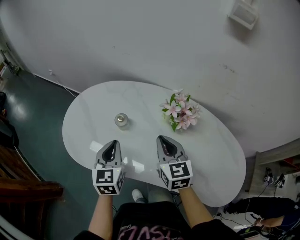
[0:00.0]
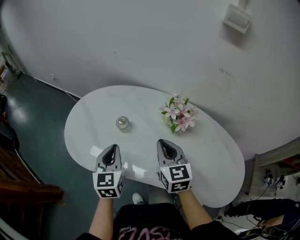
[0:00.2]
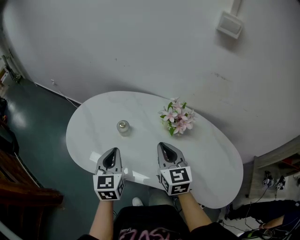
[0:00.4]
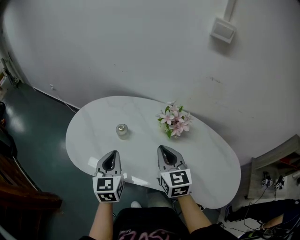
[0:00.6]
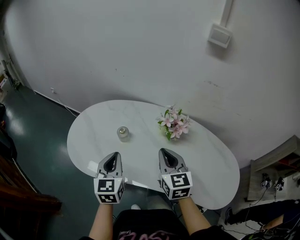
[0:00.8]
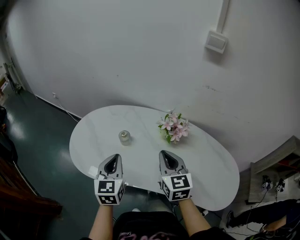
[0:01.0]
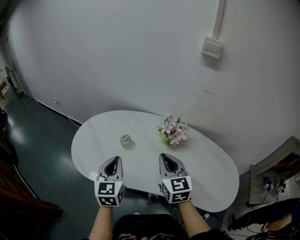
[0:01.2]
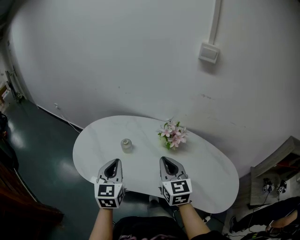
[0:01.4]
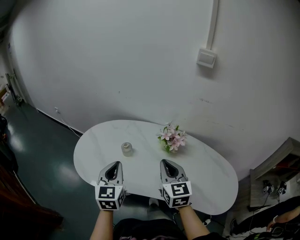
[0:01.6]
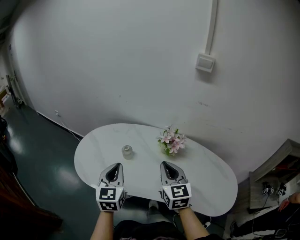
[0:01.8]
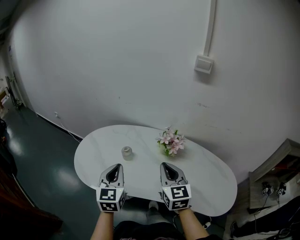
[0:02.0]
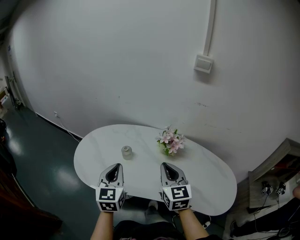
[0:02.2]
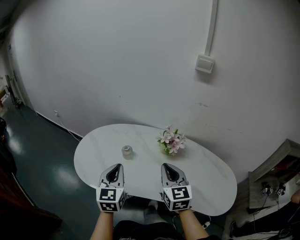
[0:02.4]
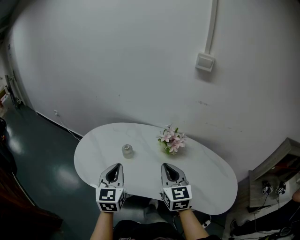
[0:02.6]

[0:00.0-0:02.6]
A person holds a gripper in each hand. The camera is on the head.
0:00.0 to 0:01.2: Both grippers move upward and backward, some 10 cm.
0:01.2 to 0:02.6: The grippers stay close to where they were, moving slightly.

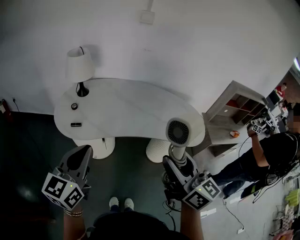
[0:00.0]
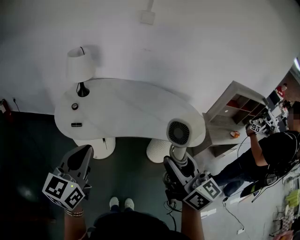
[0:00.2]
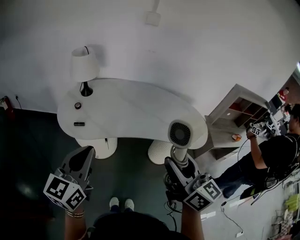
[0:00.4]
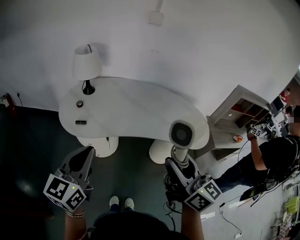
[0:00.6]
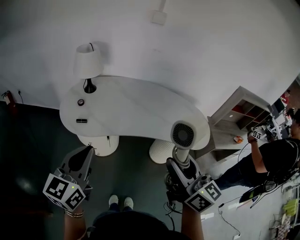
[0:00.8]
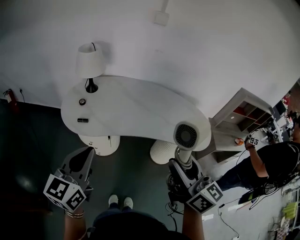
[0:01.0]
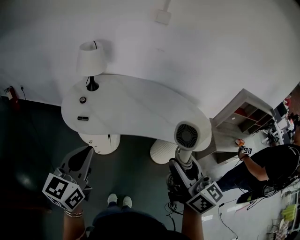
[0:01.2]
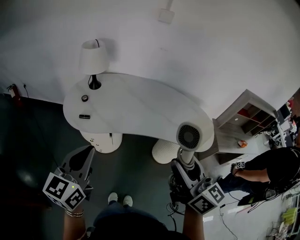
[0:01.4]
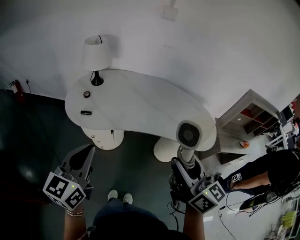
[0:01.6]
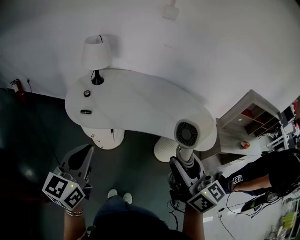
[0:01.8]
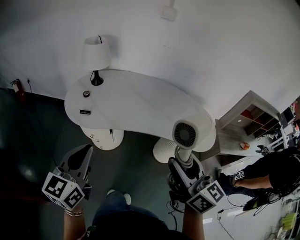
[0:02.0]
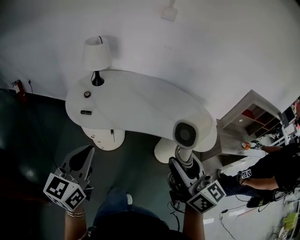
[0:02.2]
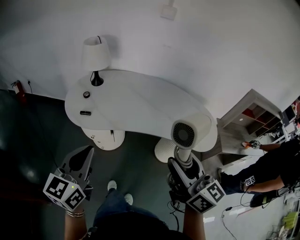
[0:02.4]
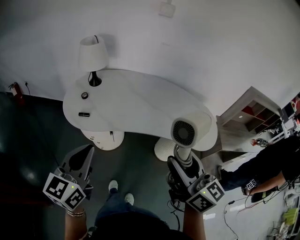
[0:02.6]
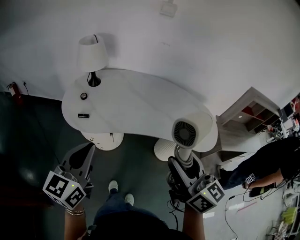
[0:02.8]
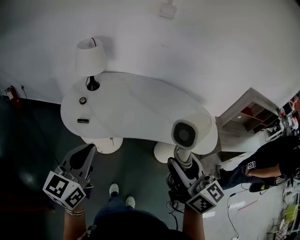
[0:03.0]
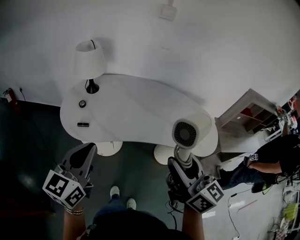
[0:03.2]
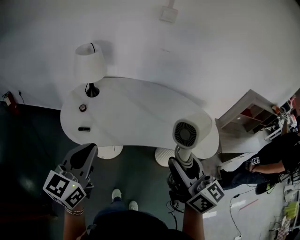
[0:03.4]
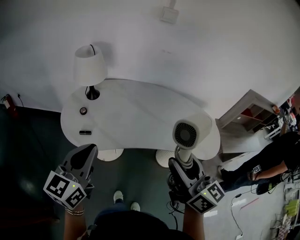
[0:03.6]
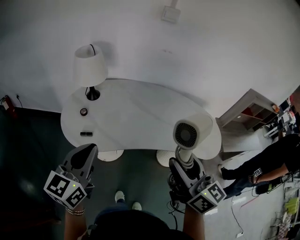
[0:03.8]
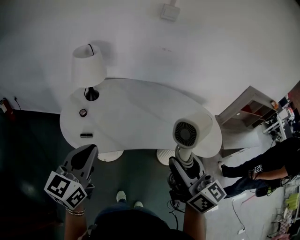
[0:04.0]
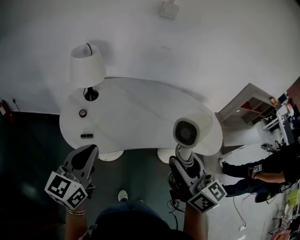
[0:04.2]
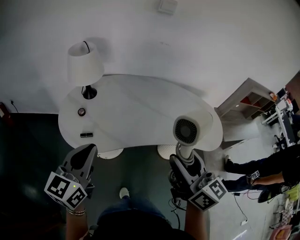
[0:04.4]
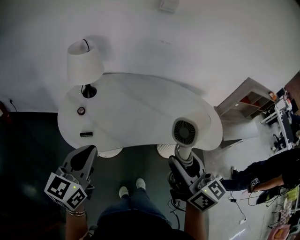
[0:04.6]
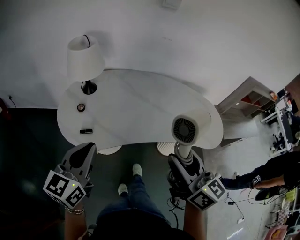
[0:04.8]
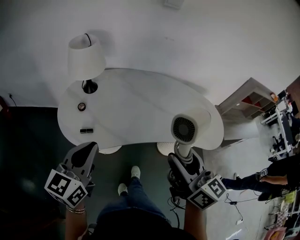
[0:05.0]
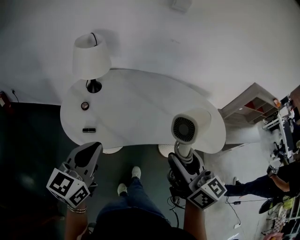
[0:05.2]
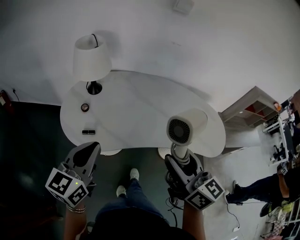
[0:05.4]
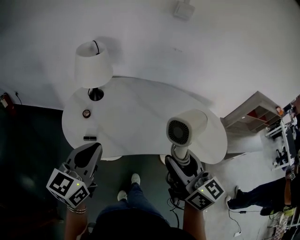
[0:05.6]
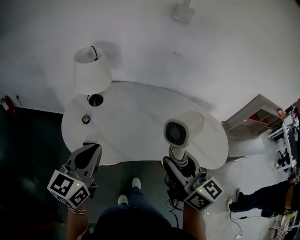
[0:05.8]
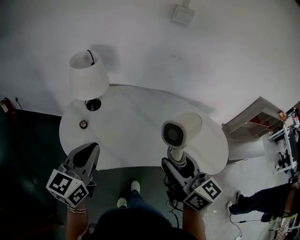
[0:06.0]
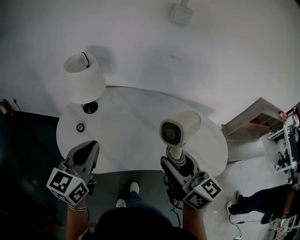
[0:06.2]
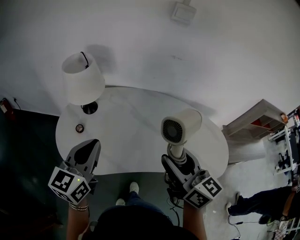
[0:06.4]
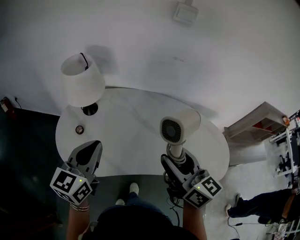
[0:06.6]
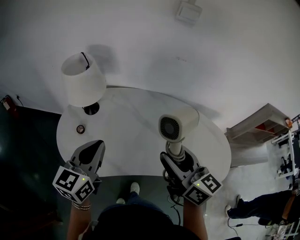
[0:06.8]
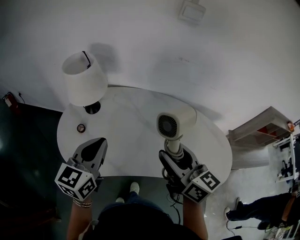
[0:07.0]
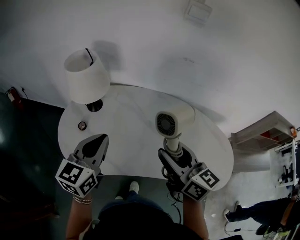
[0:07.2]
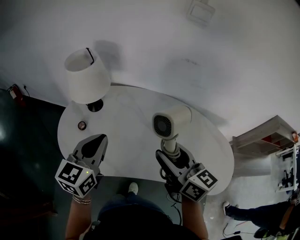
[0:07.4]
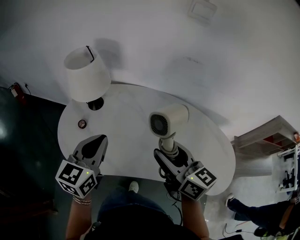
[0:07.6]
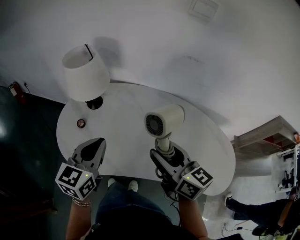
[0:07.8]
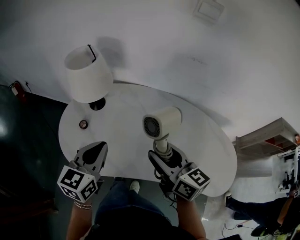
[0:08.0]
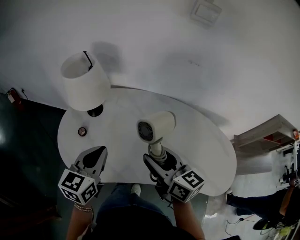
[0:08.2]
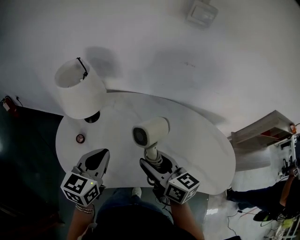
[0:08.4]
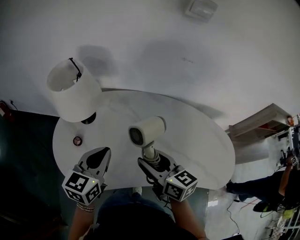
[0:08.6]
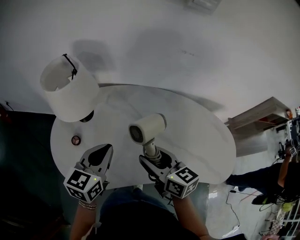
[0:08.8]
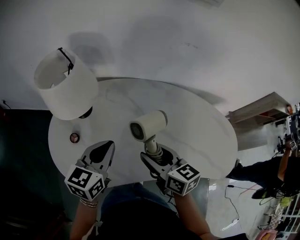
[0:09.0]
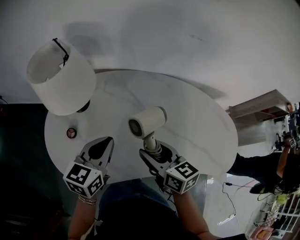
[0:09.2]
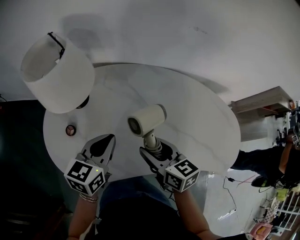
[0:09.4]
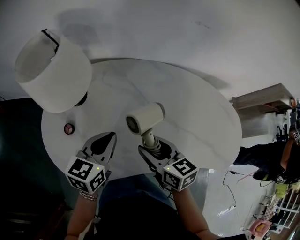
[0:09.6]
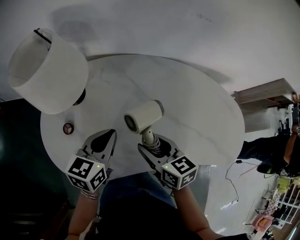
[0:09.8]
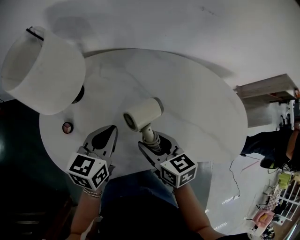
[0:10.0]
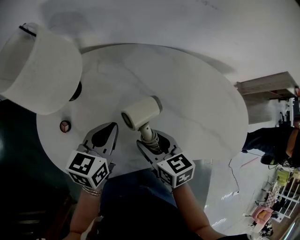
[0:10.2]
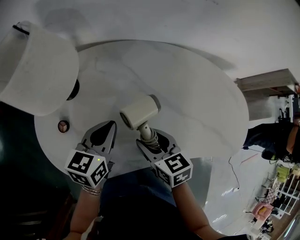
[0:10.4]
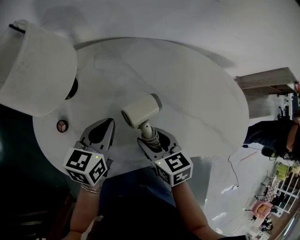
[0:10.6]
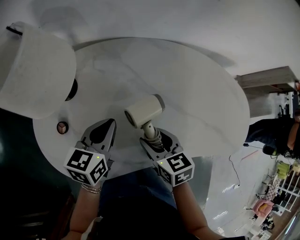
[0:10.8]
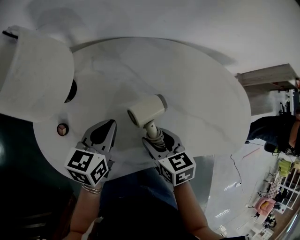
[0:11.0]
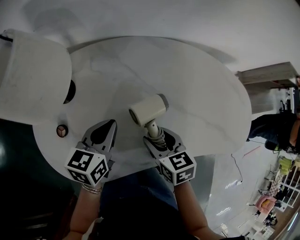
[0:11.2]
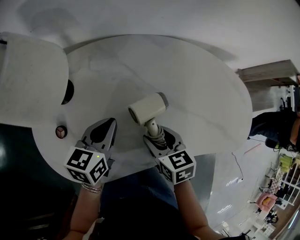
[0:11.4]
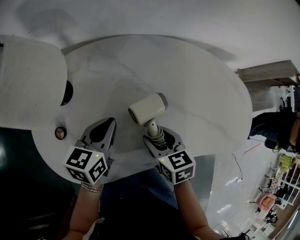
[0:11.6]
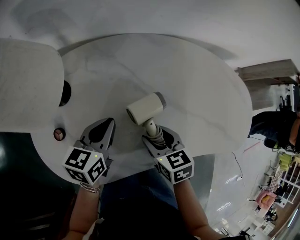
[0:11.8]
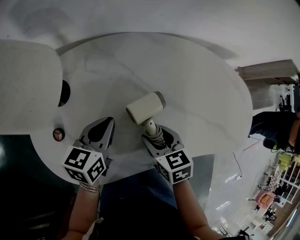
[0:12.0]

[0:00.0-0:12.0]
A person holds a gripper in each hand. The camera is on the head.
0:00.0 to 0:01.6: The grippers move only a little.
0:01.6 to 0:03.0: The grippers both shift forward by about 5 cm.
0:03.0 to 0:04.4: The left gripper moves forward and to the left, roughly 10 cm. The right gripper travels to the left and forward by roughly 10 cm.
0:04.4 to 0:06.0: The two grippers go about 10 cm forward.
0:06.0 to 0:07.6: The left gripper is displaced forward and to the right by roughly 10 cm; the right gripper shifts about 15 cm forward.
0:07.6 to 0:09.0: The left gripper shifts approximately 10 cm downward and forward, while the right gripper shifts about 15 cm downward, to the left and forward.
0:09.0 to 0:10.4: The two grippers go roughly 10 cm downward.
0:10.4 to 0:12.0: The grippers make only small movements.

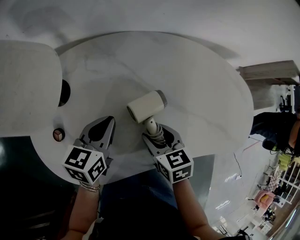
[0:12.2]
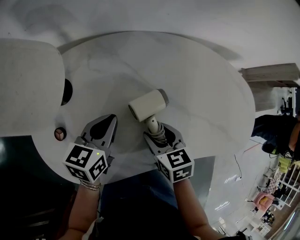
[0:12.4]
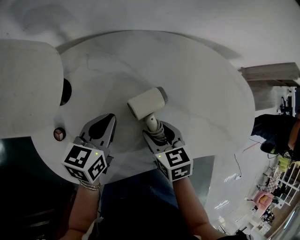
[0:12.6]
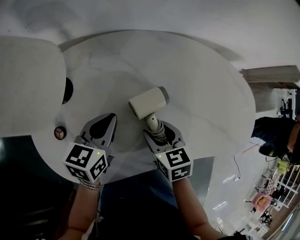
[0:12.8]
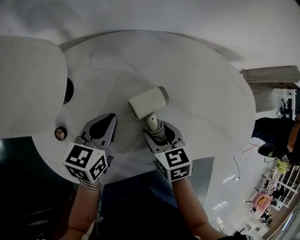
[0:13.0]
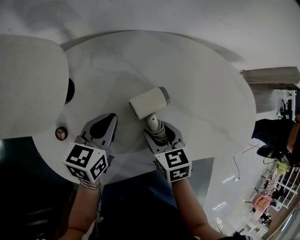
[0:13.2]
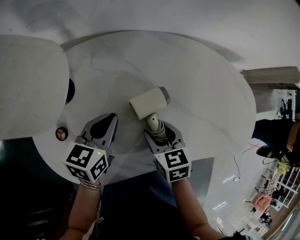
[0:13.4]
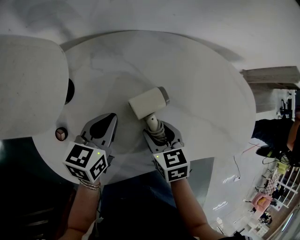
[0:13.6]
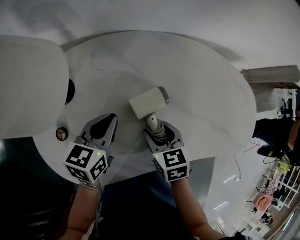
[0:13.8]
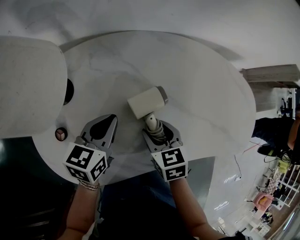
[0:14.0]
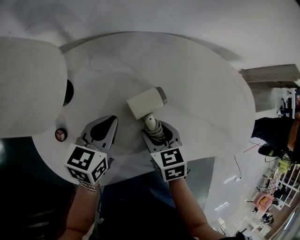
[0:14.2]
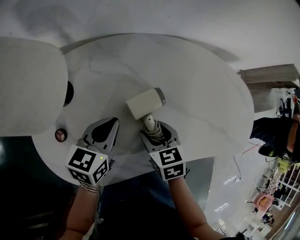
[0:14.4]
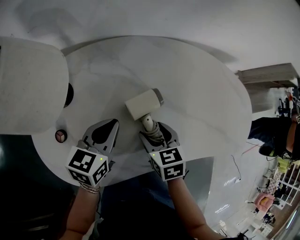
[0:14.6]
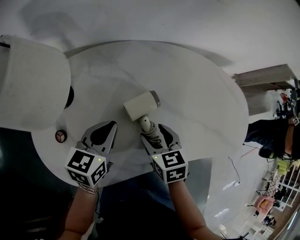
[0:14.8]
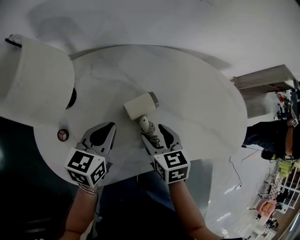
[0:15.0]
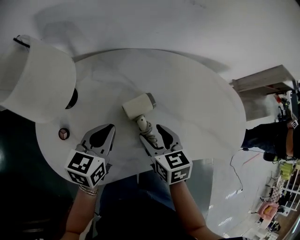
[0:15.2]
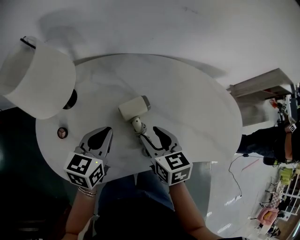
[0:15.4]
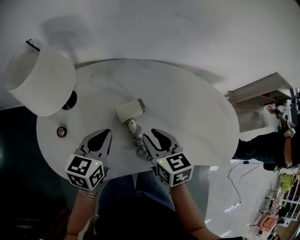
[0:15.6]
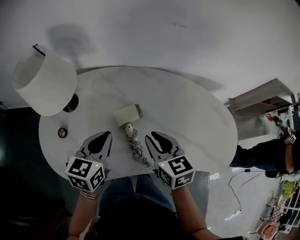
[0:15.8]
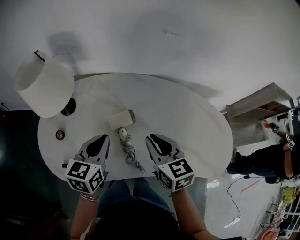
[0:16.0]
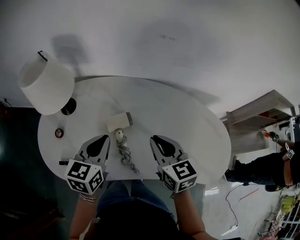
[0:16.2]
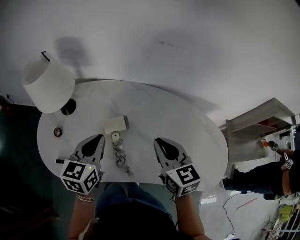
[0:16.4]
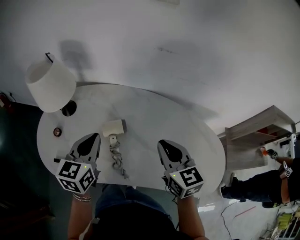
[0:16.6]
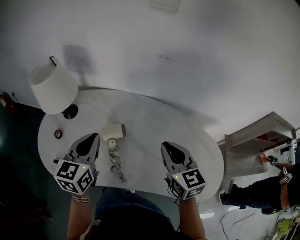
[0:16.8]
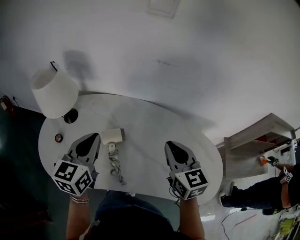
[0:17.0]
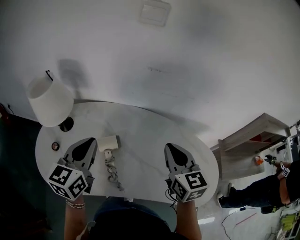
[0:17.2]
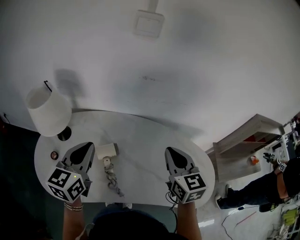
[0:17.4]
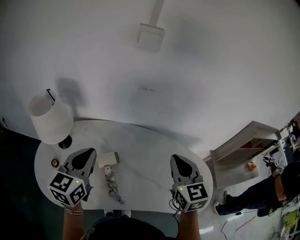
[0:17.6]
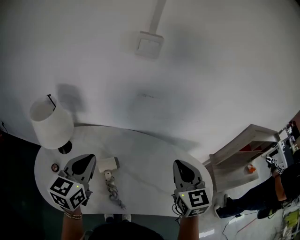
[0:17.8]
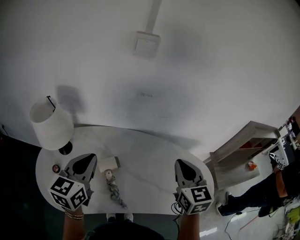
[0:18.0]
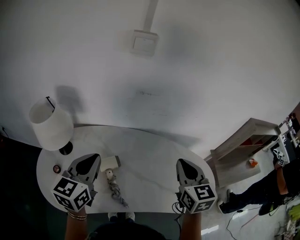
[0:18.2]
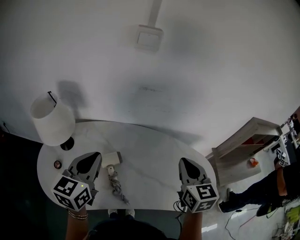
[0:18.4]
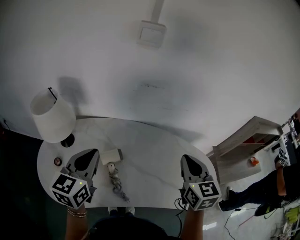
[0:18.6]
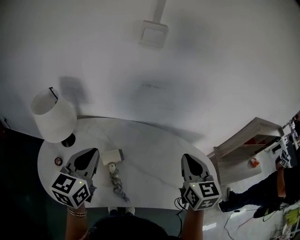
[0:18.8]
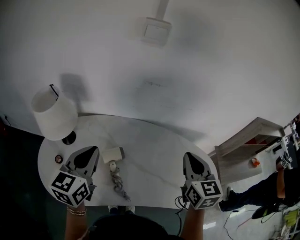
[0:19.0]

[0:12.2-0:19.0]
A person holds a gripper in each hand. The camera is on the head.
0:12.2 to 0:15.0: The grippers make only small movements.
0:15.0 to 0:16.2: The grippers both shift upward and to the right by some 15 cm. The right gripper rotates about 30 degrees, and closes.
0:16.2 to 0:17.6: The left gripper is displaced upward by approximately 15 cm. Meanwhile the right gripper is displaced upward and to the right by roughly 20 cm, and swivels roughly 20 degrees.
0:17.6 to 0:19.0: There are only small adjustments of the grippers.

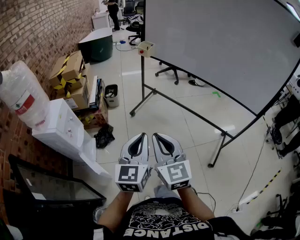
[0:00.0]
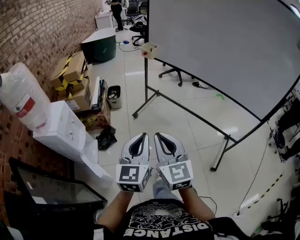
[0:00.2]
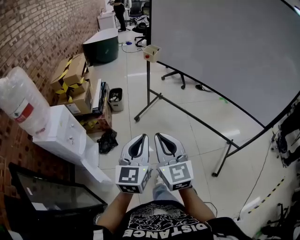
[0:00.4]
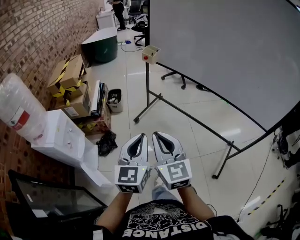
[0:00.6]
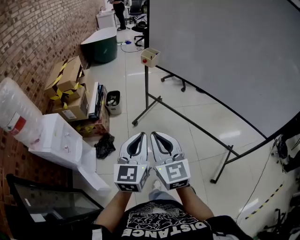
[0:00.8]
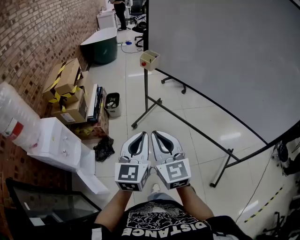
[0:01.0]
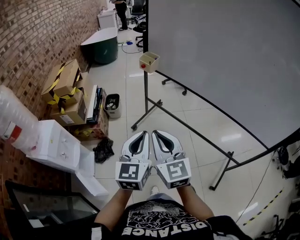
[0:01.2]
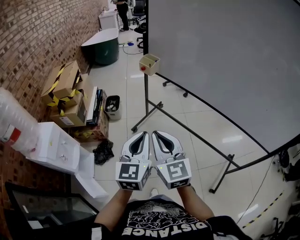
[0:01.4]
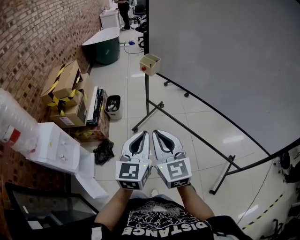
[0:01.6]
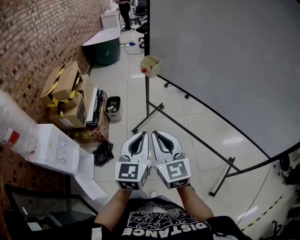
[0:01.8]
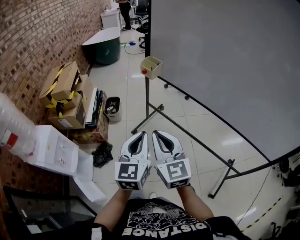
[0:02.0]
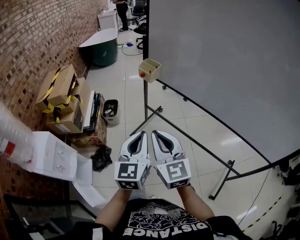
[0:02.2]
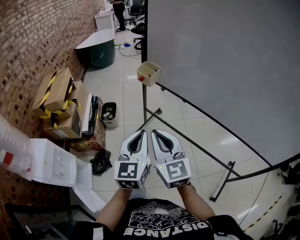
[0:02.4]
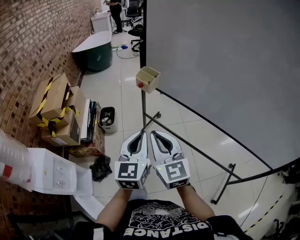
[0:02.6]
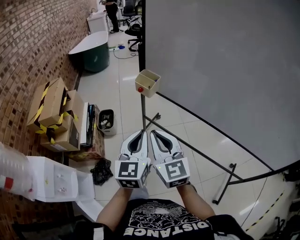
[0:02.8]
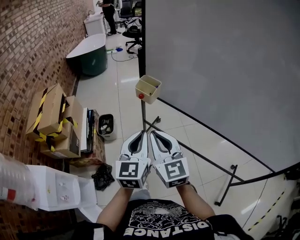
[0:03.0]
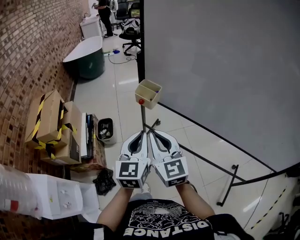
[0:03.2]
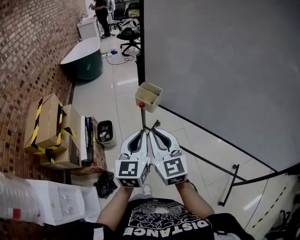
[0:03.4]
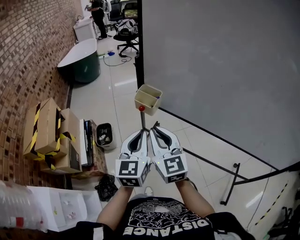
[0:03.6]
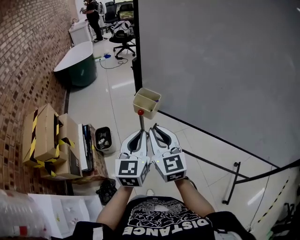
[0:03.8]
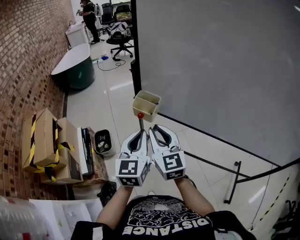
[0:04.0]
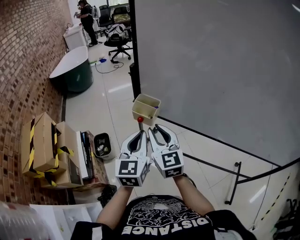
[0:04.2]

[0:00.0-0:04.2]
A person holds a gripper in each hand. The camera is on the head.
0:00.0 to 0:01.4: Both grippers travel together forward, some 25 cm.
0:01.4 to 0:02.8: The grippers both shift forward by roughly 25 cm.
0:02.8 to 0:04.2: Both grippers move forward, some 20 cm.
